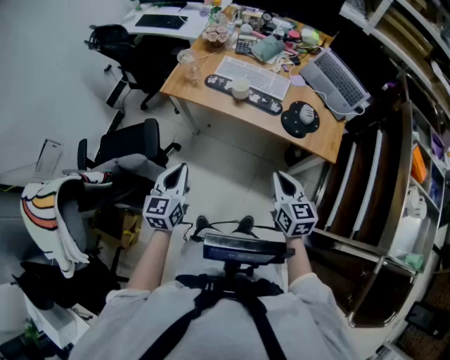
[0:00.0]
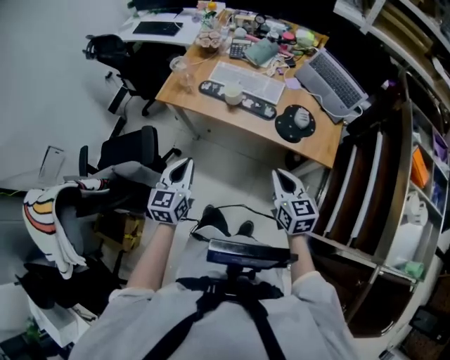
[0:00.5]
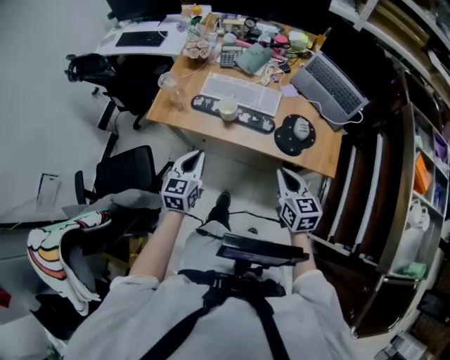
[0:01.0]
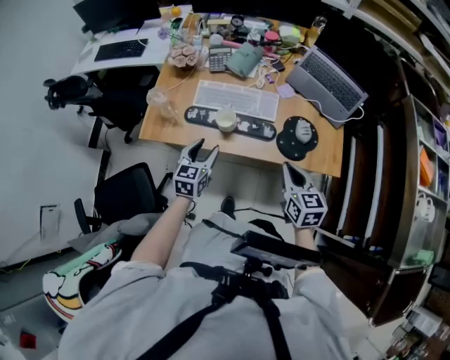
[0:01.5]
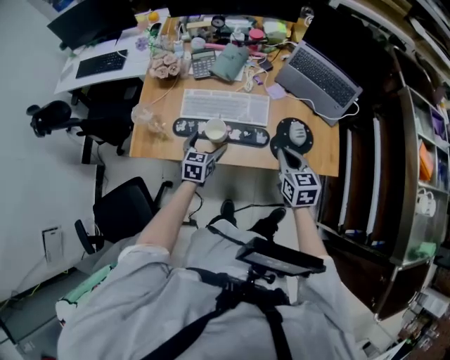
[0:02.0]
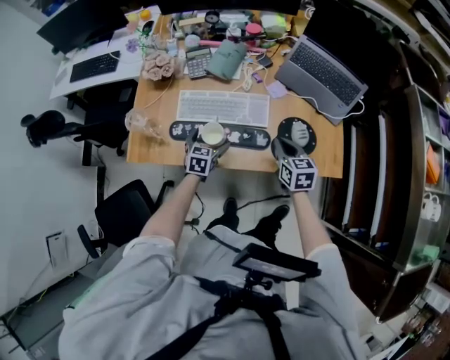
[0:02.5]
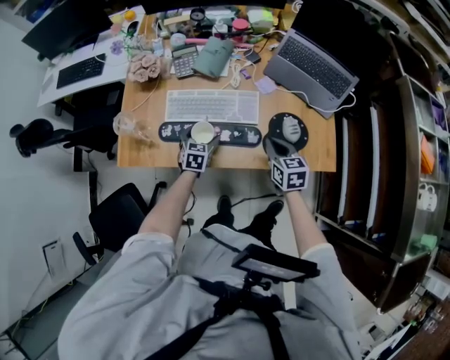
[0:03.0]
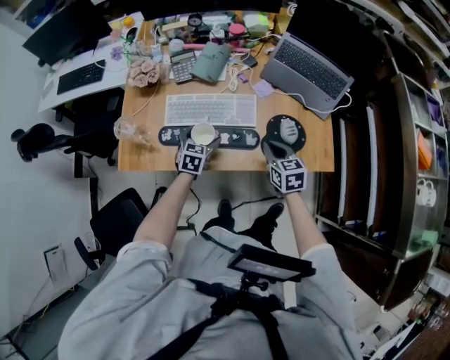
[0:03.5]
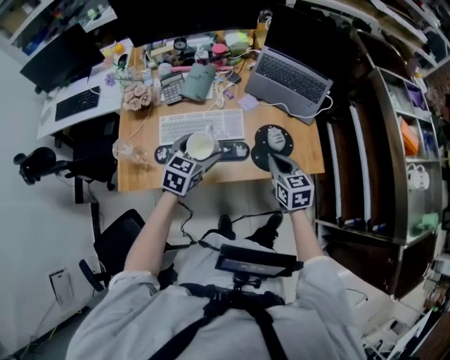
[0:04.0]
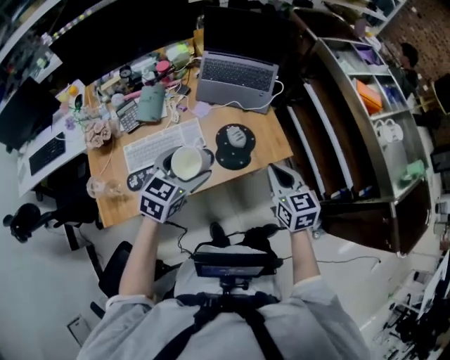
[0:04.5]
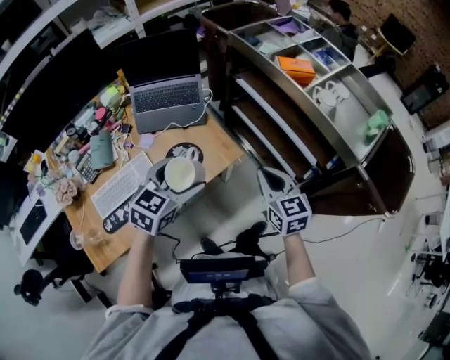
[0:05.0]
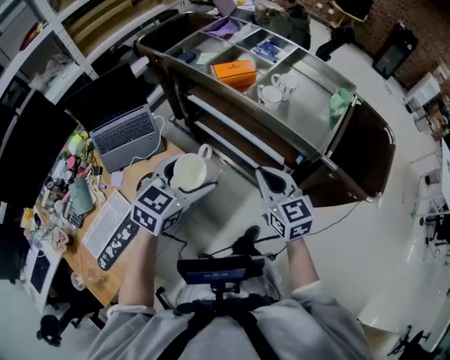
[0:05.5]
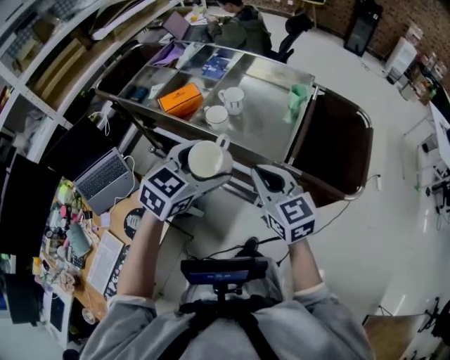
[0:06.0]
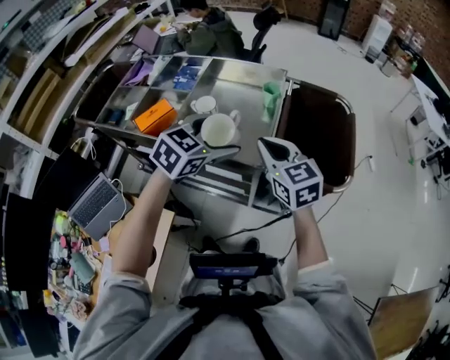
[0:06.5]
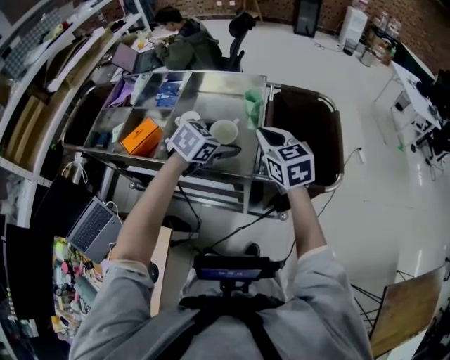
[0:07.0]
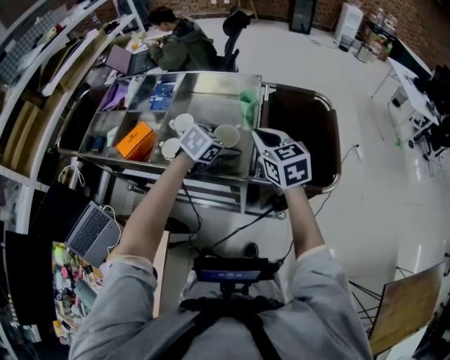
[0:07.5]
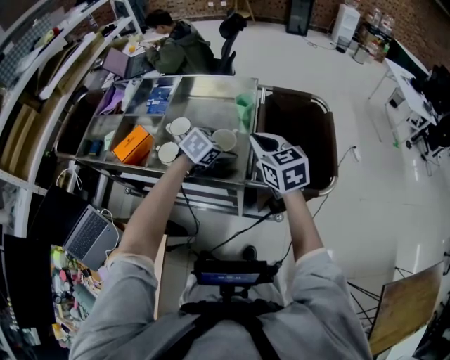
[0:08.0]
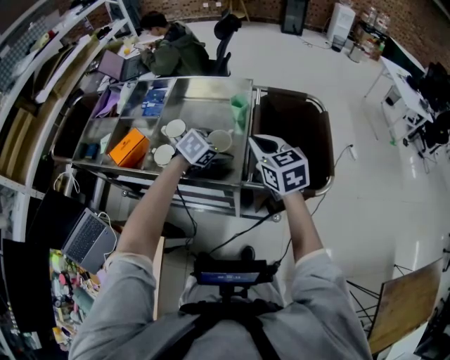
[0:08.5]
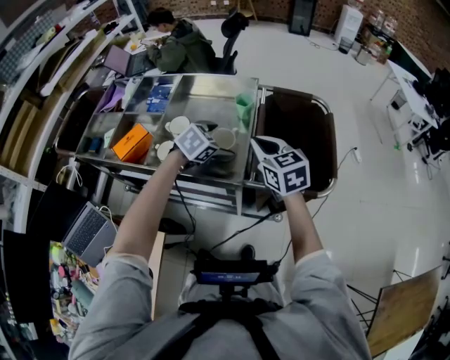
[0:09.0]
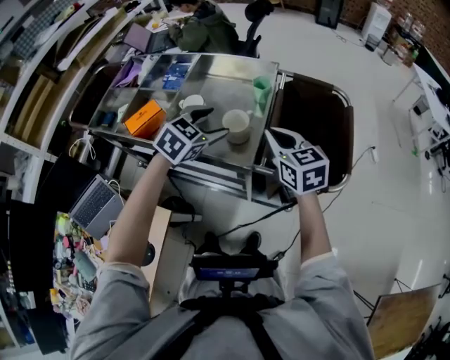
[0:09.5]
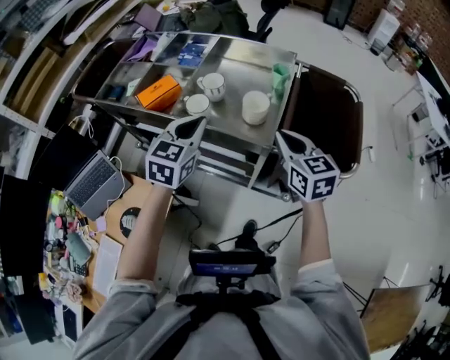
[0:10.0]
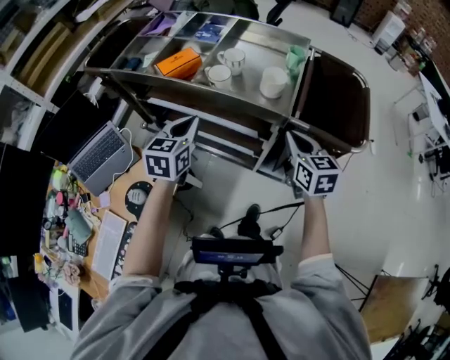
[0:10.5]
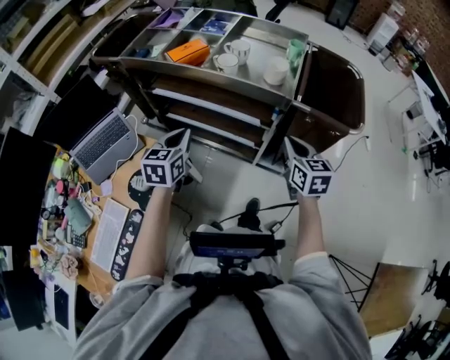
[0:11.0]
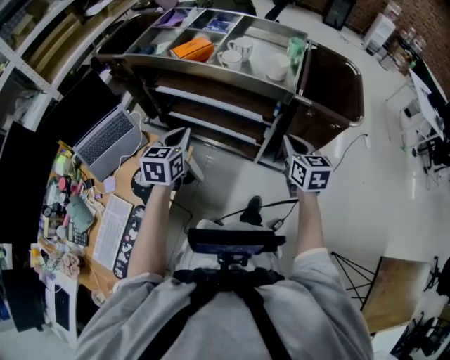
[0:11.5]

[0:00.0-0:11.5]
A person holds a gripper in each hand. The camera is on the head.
0:00.0 to 0:02.0: The right gripper moves forward, roughly 30 cm. Meanwhile the left gripper goes about 40 cm forward and downward, turns by some 30 degrees, and opens.
0:02.0 to 0:04.0: The left gripper shifts roughly 15 cm upward and to the right, and rotates about 20 degrees.
0:04.0 to 0:06.0: Both grippers are carried approximately 60 cm. The right gripper changes its angle by approximately 50 degrees. The left gripper changes its angle by approximately 80 degrees.
0:06.0 to 0:07.5: The left gripper shifts about 25 cm forward, downward and to the right, and rotates roughly 30 degrees, while the right gripper shifts roughly 20 cm forward and to the right, and turns by approximately 20 degrees.
0:07.5 to 0:09.5: The left gripper goes approximately 10 cm upward.
0:09.5 to 0:11.5: The left gripper moves backward and to the left, roughly 40 cm, changes its angle by about 40 degrees, and closes its fingers; the right gripper goes approximately 25 cm backward, to the left and downward.

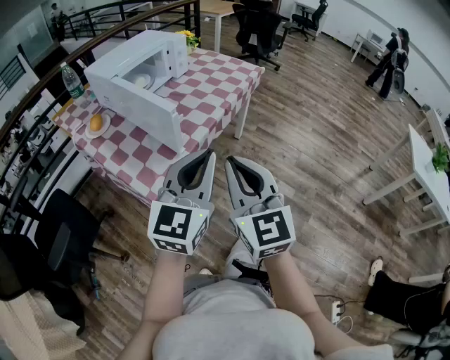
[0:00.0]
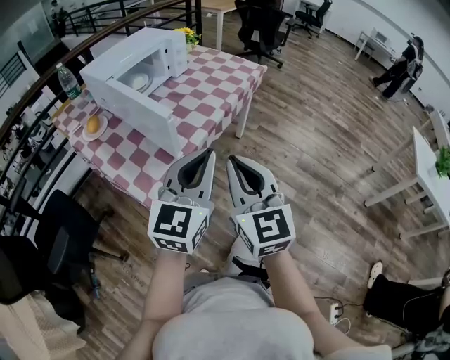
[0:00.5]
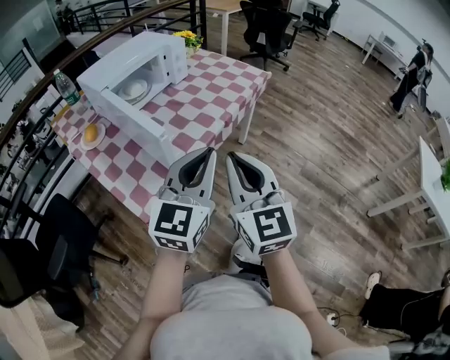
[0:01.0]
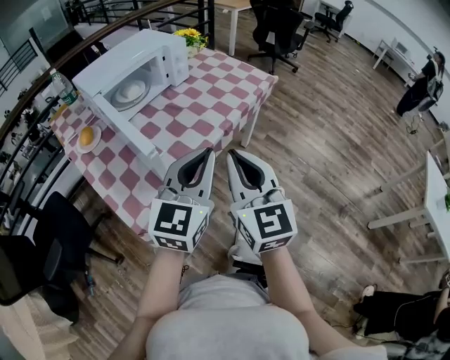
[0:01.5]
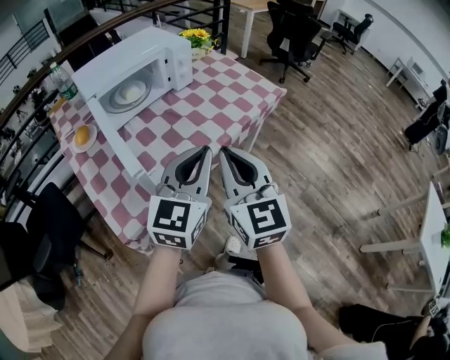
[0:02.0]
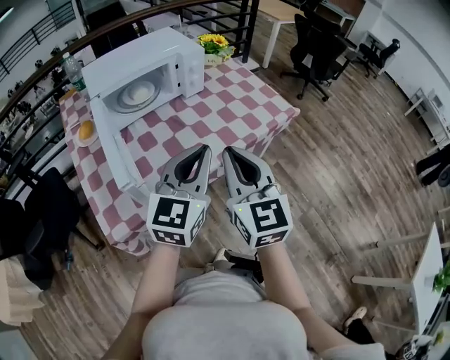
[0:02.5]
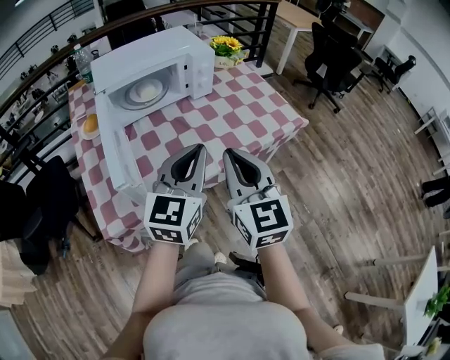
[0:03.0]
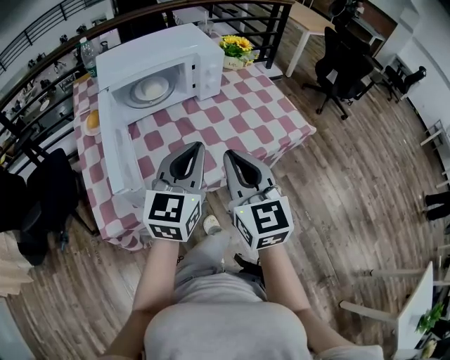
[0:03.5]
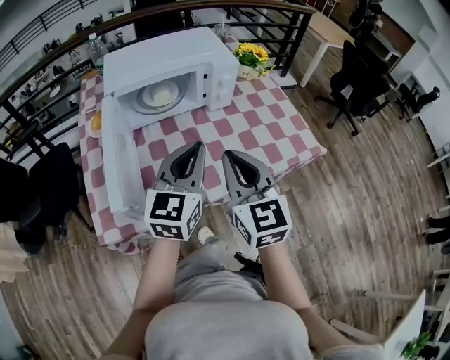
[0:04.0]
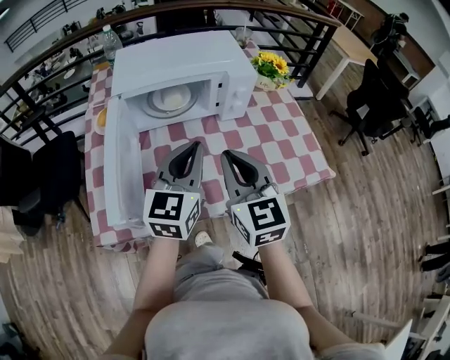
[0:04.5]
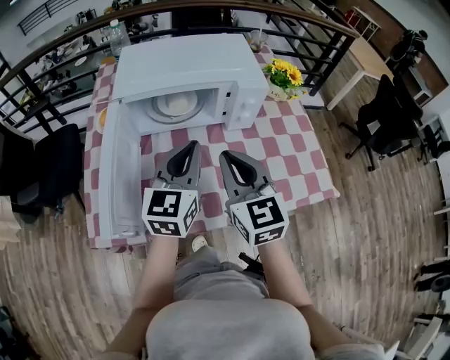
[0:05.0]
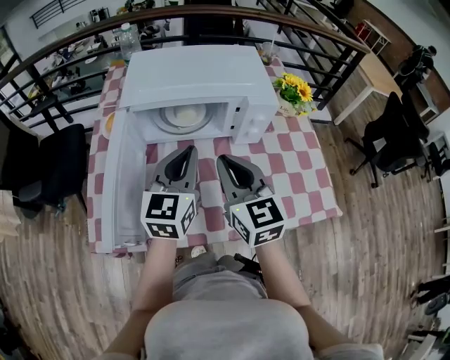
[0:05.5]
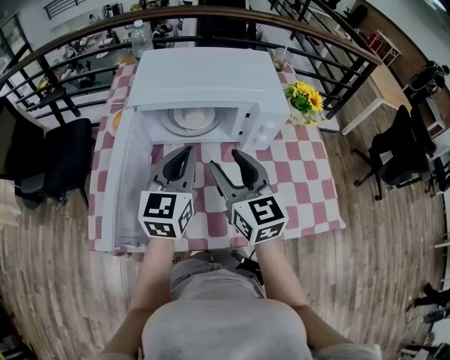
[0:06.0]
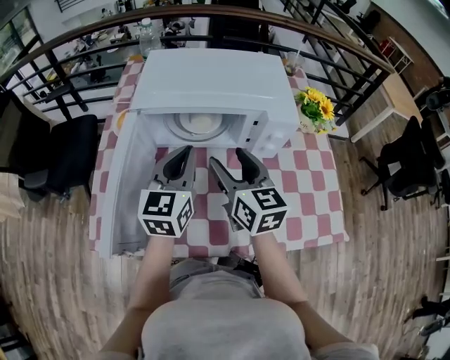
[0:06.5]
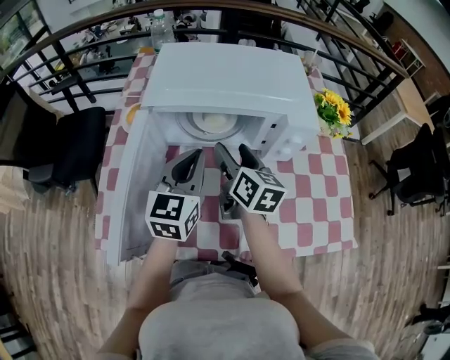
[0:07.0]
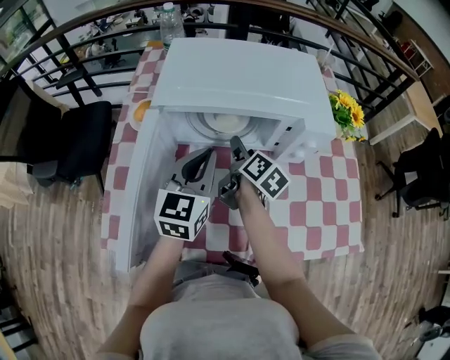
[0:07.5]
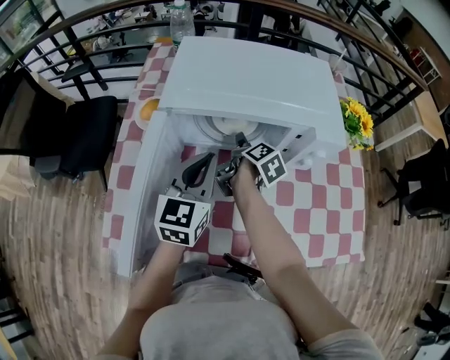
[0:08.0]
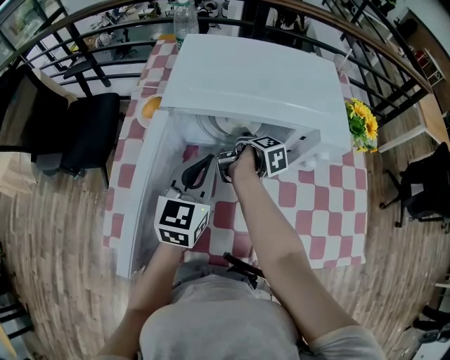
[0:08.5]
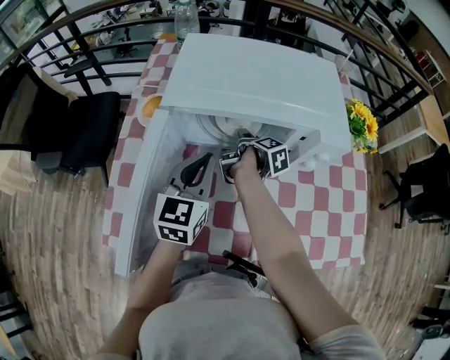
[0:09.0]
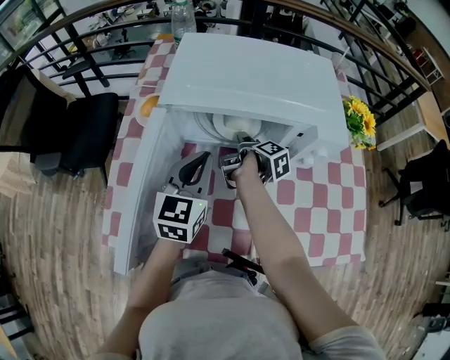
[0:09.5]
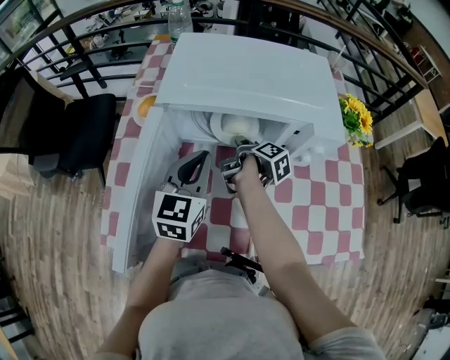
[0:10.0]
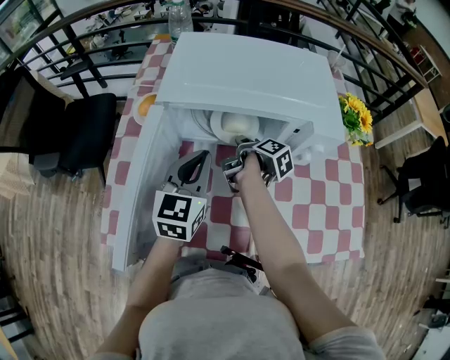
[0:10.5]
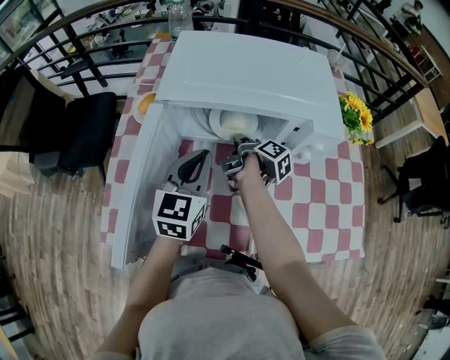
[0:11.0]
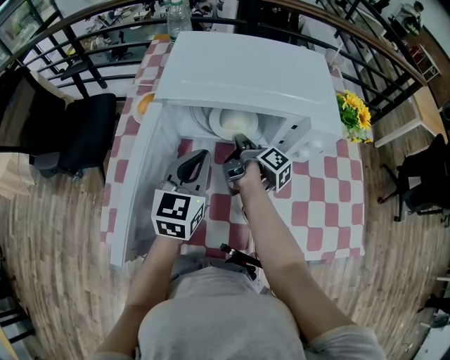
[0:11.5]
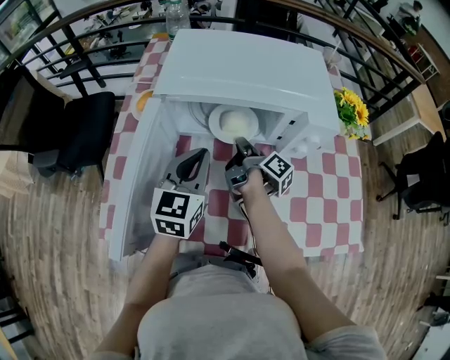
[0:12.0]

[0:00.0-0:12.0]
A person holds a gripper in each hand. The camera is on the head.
0:00.0 to 0:02.0: The two grippers go about 25 cm forward.
0:02.0 to 0:04.0: Both grippers travel together forward, roughly 20 cm. The left gripper changes its angle by some 30 degrees. Meanwhile the right gripper swivels some 20 degrees.
0:04.0 to 0:06.0: The grippers both shift forward by some 15 cm. The right gripper swivels about 20 degrees, and opens. The left gripper rotates some 20 degrees.
0:06.0 to 0:08.0: The right gripper shifts approximately 25 cm downward and forward, and twists about 70 degrees clockwise, seen from behind. The left gripper travels forward and downward by approximately 10 cm.
0:08.0 to 0:10.0: The right gripper closes up.
0:10.0 to 0:12.0: The right gripper changes its angle by roughly 20 degrees, and closes its fingers.

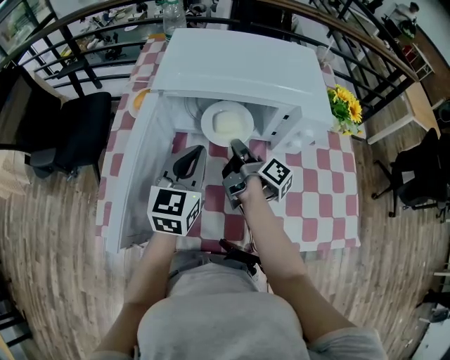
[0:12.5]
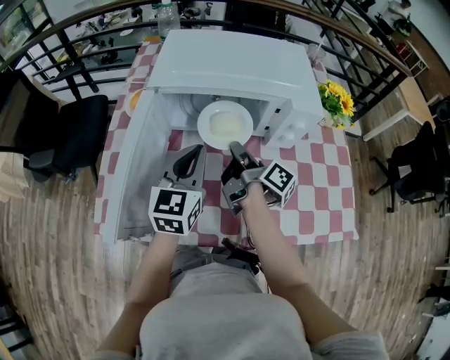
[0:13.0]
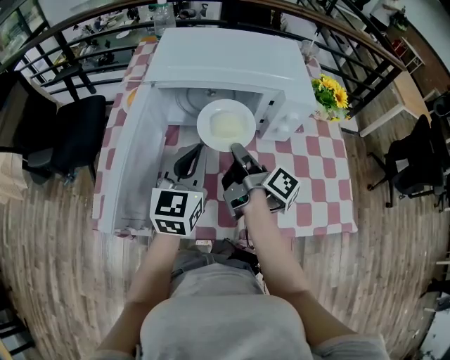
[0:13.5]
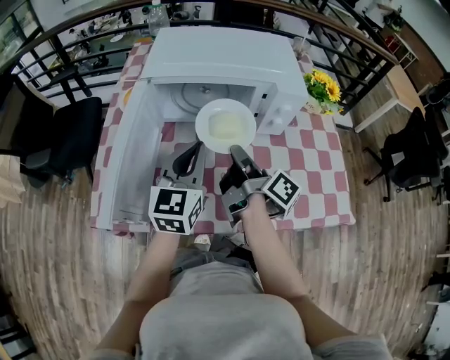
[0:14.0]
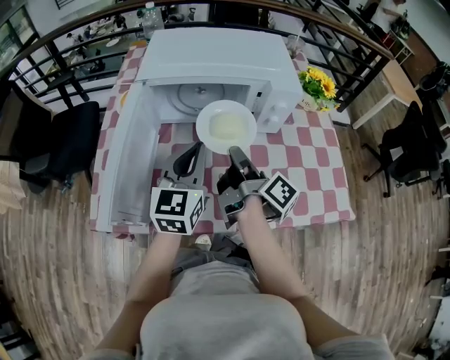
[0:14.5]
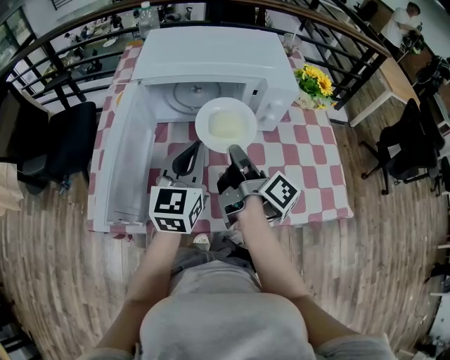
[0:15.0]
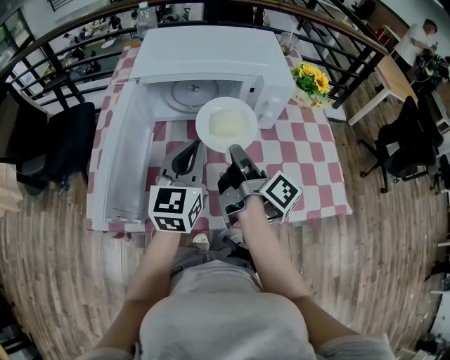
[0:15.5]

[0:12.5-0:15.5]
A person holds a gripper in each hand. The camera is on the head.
0:12.5 to 0:14.0: The right gripper goes about 15 cm backward and upward; the left gripper travels backward by some 5 cm.
0:14.0 to 0:15.5: The grippers make only small movements.
